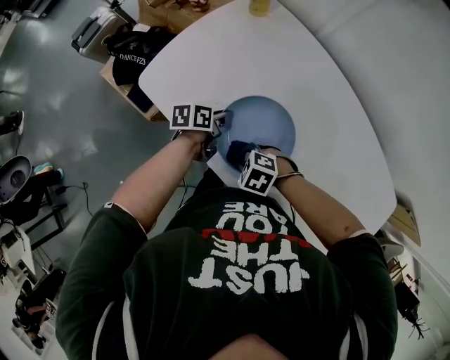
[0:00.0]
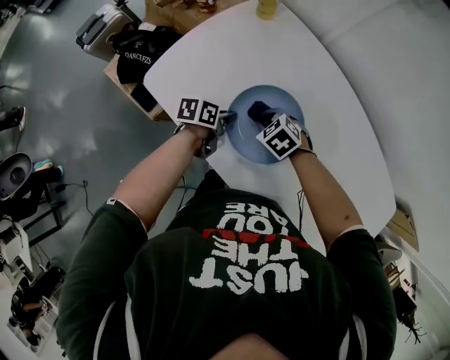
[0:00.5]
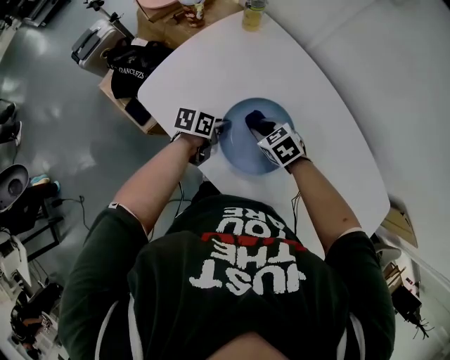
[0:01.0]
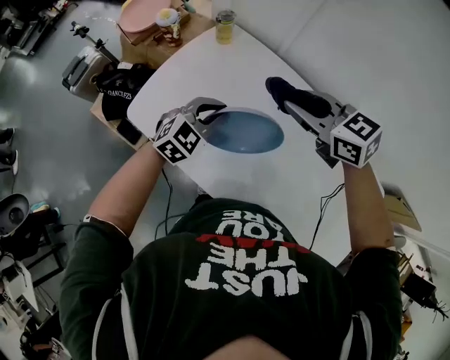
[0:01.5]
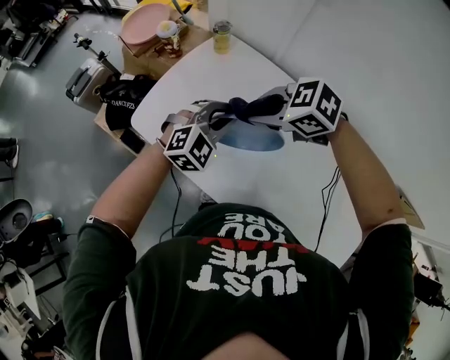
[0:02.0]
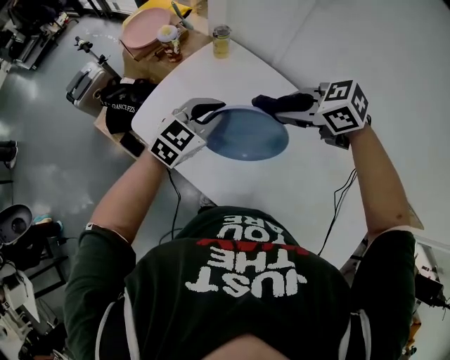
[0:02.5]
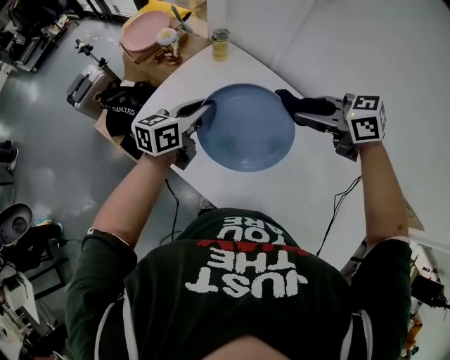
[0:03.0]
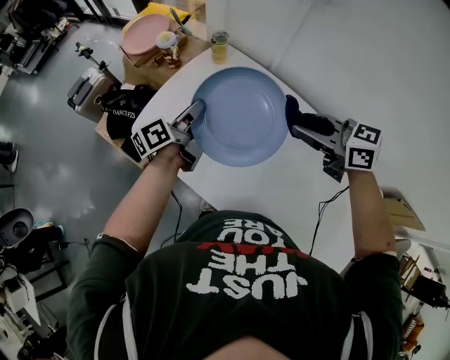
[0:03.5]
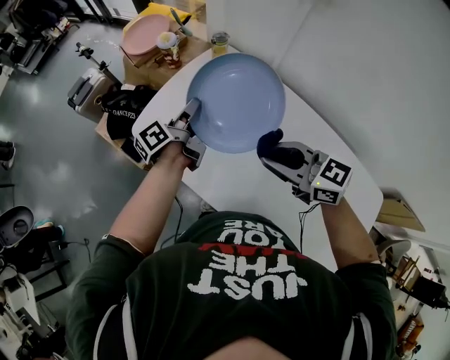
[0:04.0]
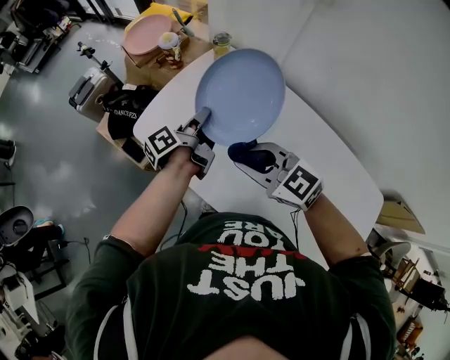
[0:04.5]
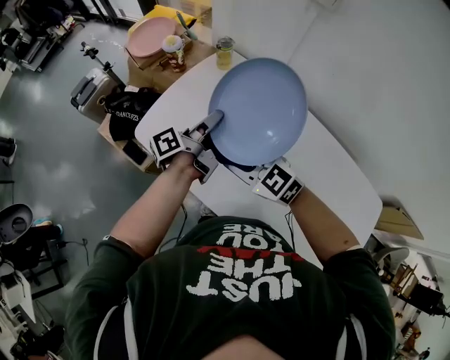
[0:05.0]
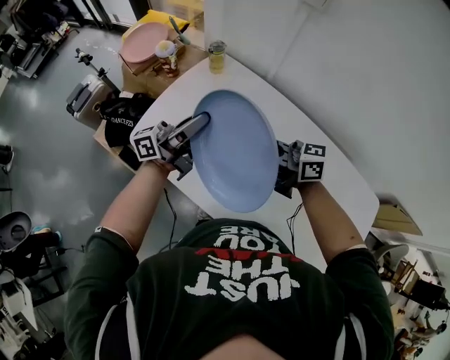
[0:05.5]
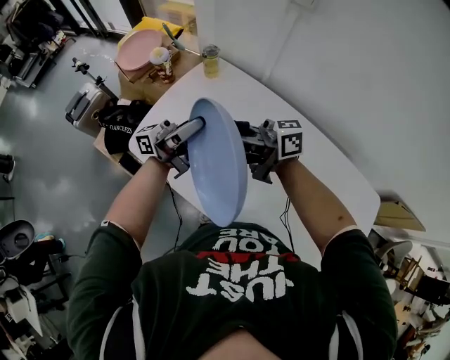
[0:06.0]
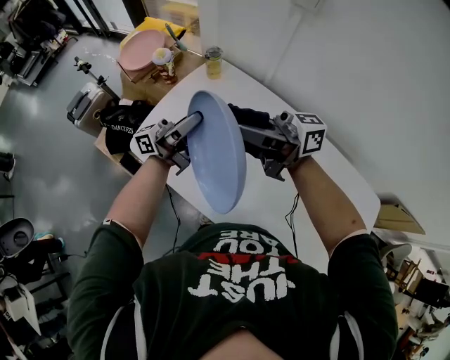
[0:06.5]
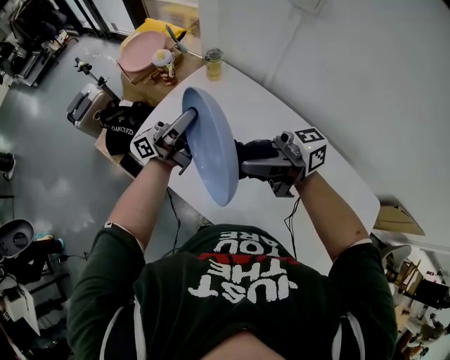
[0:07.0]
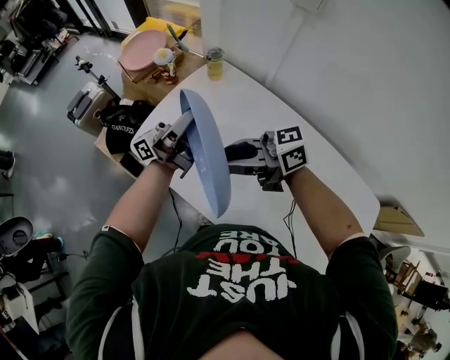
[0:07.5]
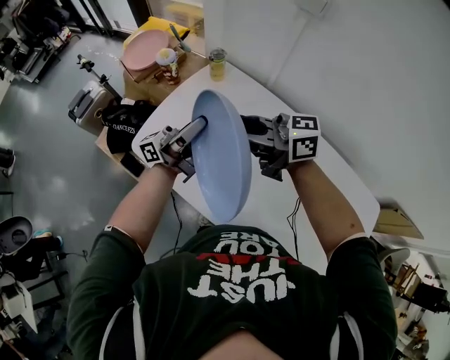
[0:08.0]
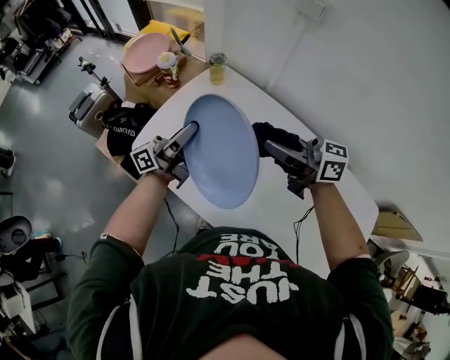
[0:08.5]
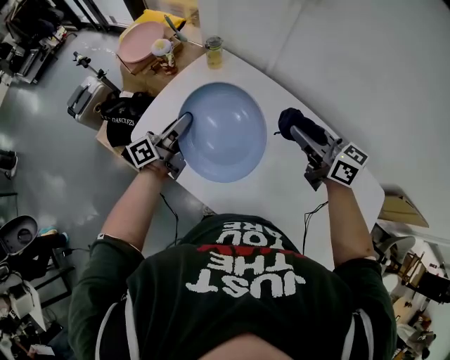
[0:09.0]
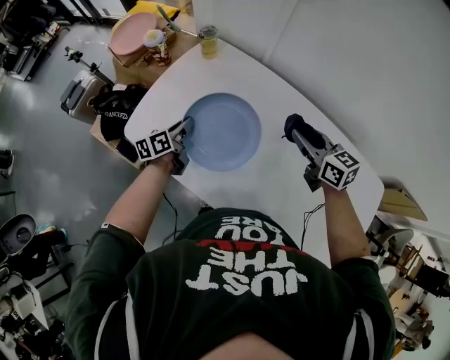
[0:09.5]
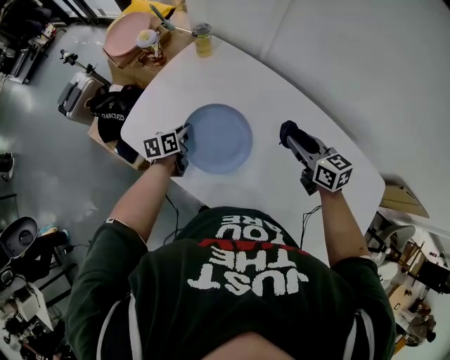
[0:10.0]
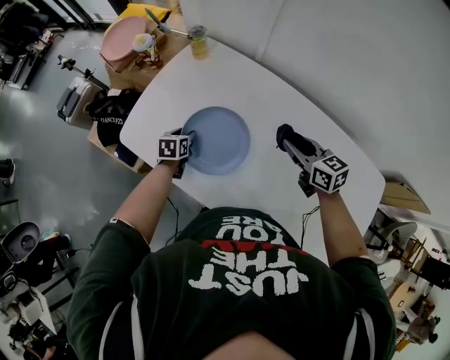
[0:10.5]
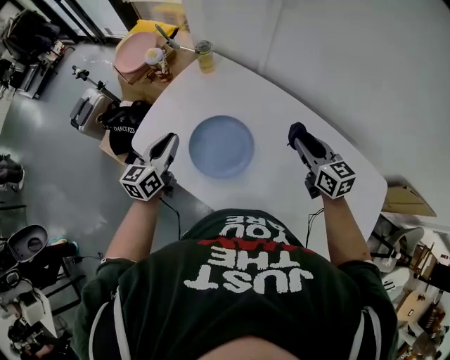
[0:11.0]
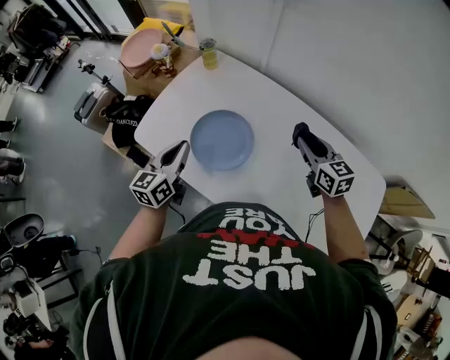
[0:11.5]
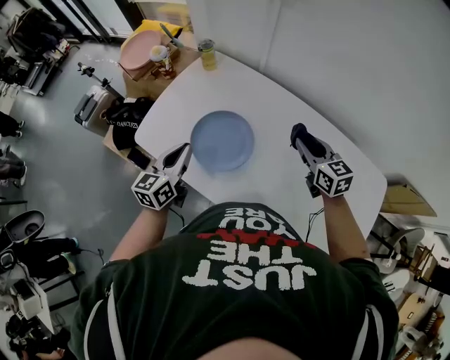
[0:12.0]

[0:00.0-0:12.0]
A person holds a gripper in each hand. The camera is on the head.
0:00.0 to 0:02.0: Both grippers move upward, approximately 25 cm. The right gripper turns by some 20 degrees. The left gripper rotates around the line of its fingers by some 100 degrees, clockwise from behind.
0:02.0 to 0:04.0: The left gripper changes place by some 15 cm, and rolls counterclockwise, seen from behind, by some 110 degrees; the right gripper moves about 10 cm, and tips its fingers upward by about 30 degrees.
0:04.0 to 0:06.0: The right gripper reaches about 10 cm downward, then returns, and tips its fingers upward by roughly 30 degrees; the left gripper moves upward, approximately 10 cm, and points its fingers approximately 40 degrees further upward.
0:06.0 to 0:08.0: The right gripper swings up and down, approximately 10 cm each way, with 2 reversals.
0:08.0 to 0:10.0: The right gripper shifts by roughly 30 cm, and tips its fingers downward by about 30 degrees. The left gripper shifts roughly 30 cm downward, and points its fingers some 80 degrees further downward.
0:10.0 to 0:12.0: The left gripper goes some 25 cm upward and backward, turns by some 30 degrees, and opens, then closes once more. Meanwhile the right gripper moves approximately 5 cm.

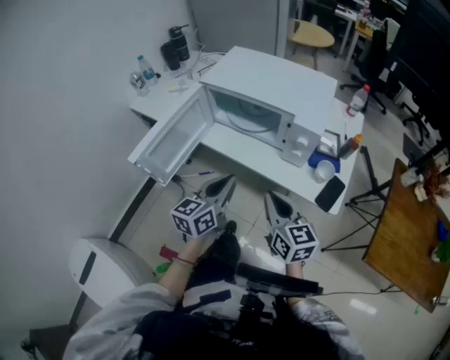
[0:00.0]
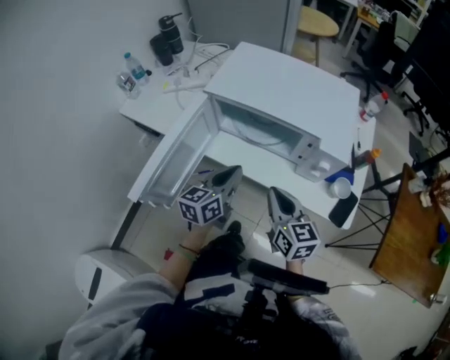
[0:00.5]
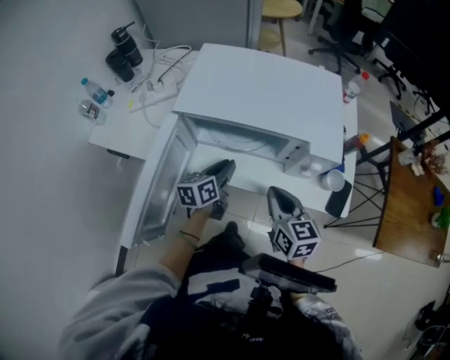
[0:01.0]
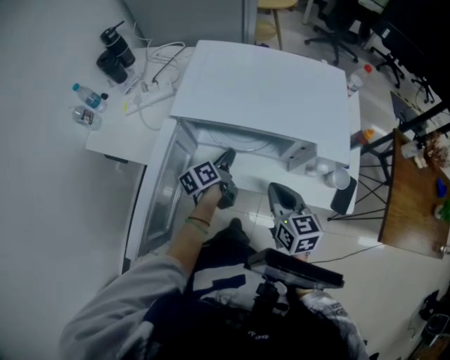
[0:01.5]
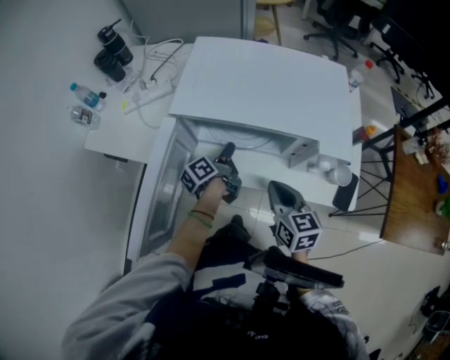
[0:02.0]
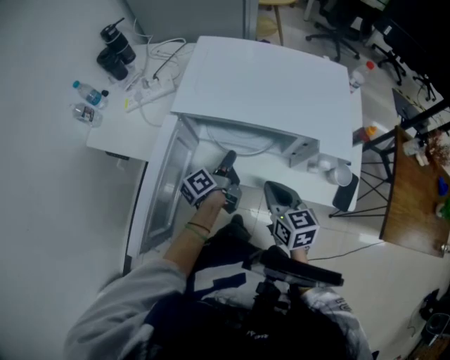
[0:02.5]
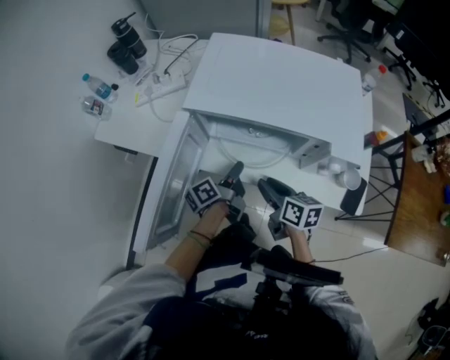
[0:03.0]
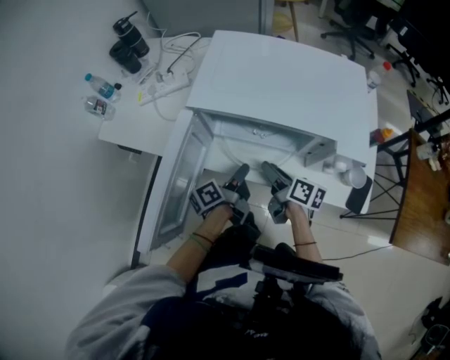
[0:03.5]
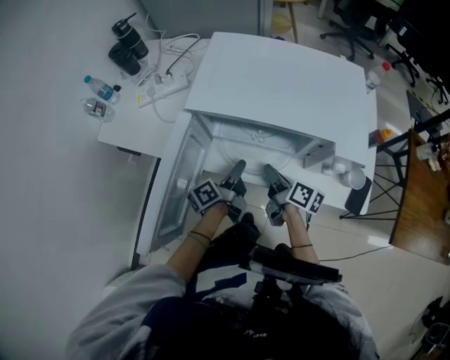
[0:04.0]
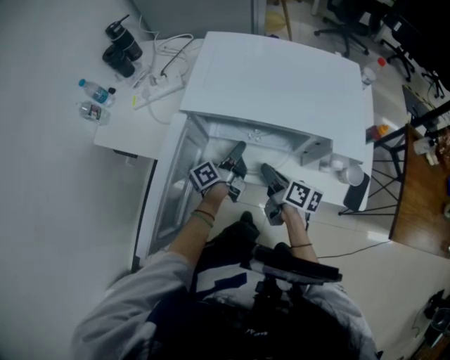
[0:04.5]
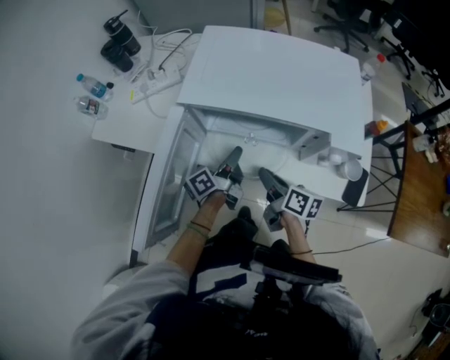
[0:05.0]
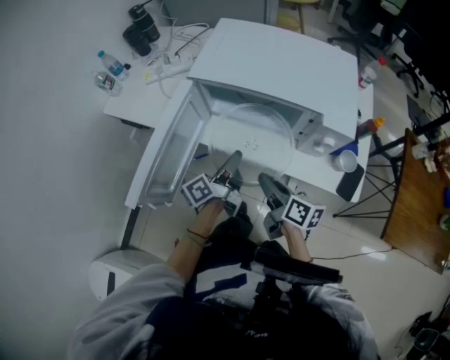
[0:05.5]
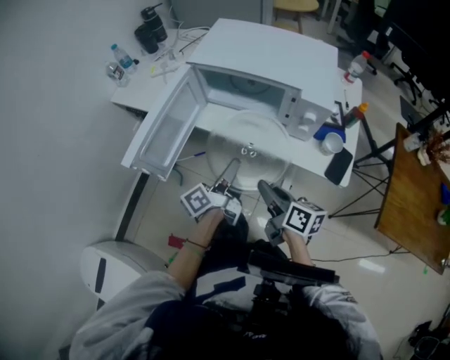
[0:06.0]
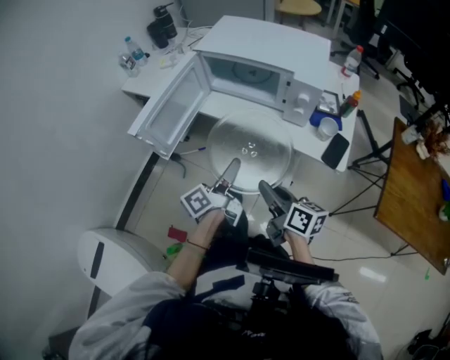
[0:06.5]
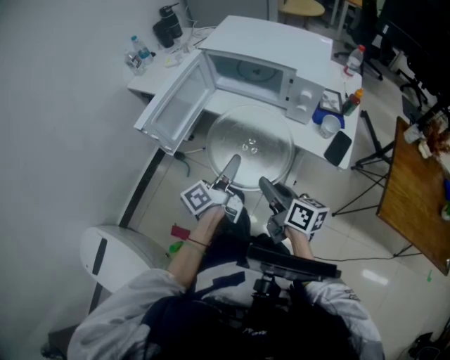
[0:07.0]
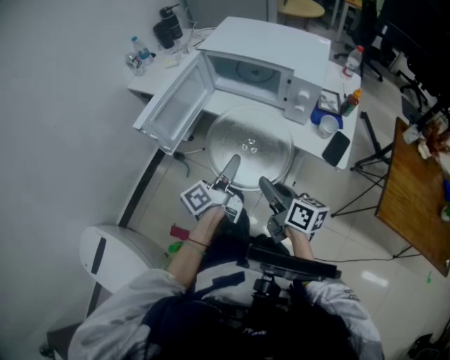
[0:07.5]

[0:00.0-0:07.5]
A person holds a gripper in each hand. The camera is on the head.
0:00.0 to 0:02.0: The right gripper heads forward, covering approximately 15 cm, and changes its angle by some 20 degrees; the left gripper heads forward and downward, covering about 35 cm, and twists approximately 60 degrees counterclockwise, seen from behind.
0:02.0 to 0:04.0: The right gripper heads downward and forward, covering roughly 10 cm, rotates around the line of its fingers by some 50 degrees, clockwise from behind, and opens, then closes again, while the left gripper is displaced backward by roughly 5 cm.
0:04.0 to 0:05.5: The right gripper shifts roughly 10 cm backward. The left gripper moves backward and upward, roughly 10 cm.
0:05.5 to 0:07.5: Both grippers travel together backward, approximately 20 cm.

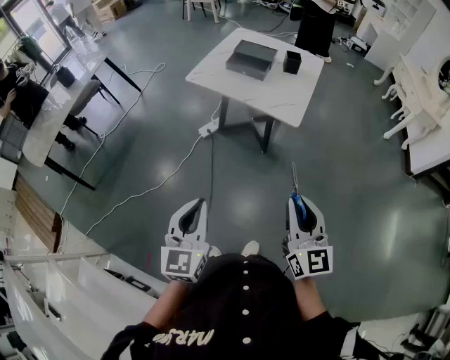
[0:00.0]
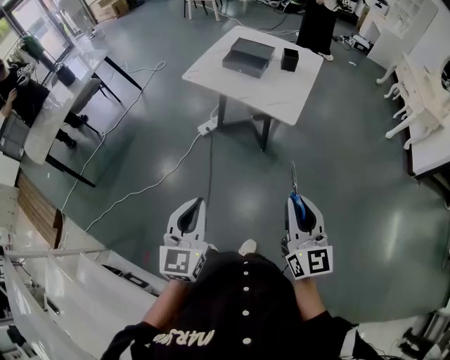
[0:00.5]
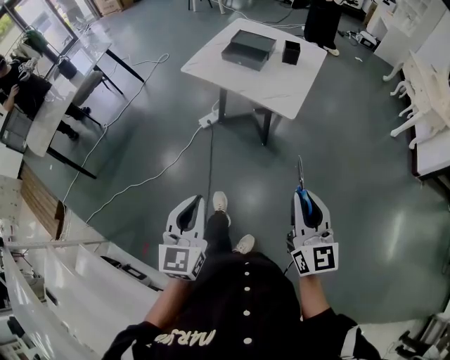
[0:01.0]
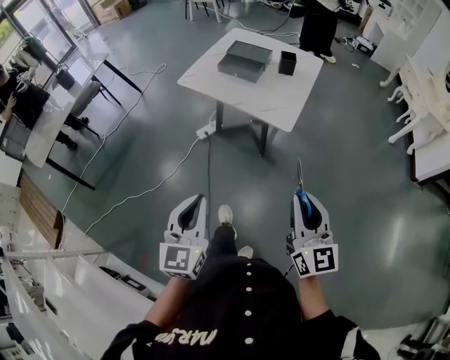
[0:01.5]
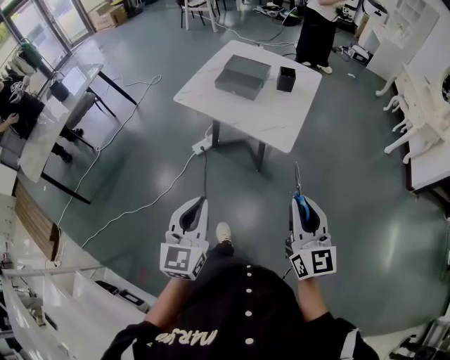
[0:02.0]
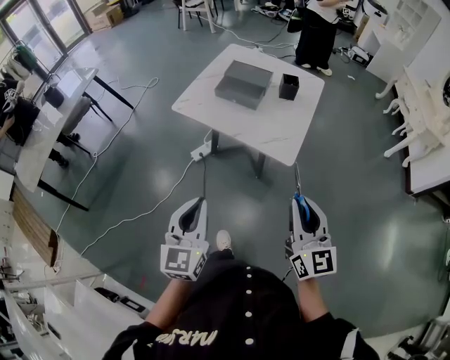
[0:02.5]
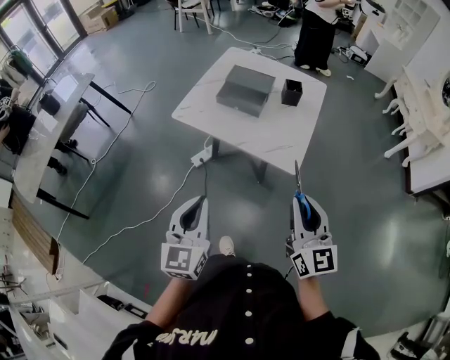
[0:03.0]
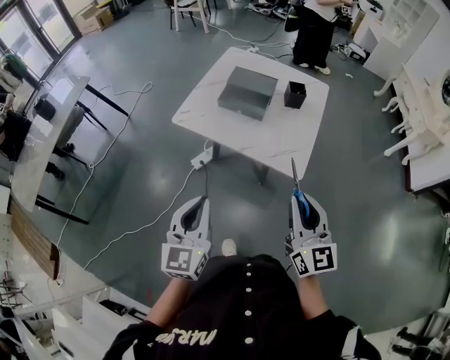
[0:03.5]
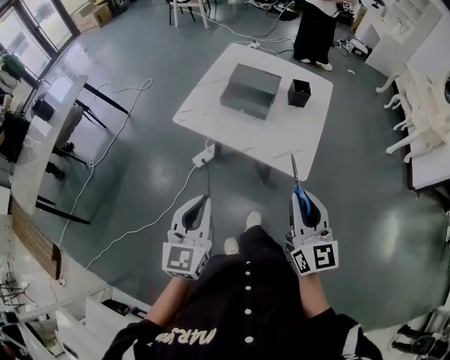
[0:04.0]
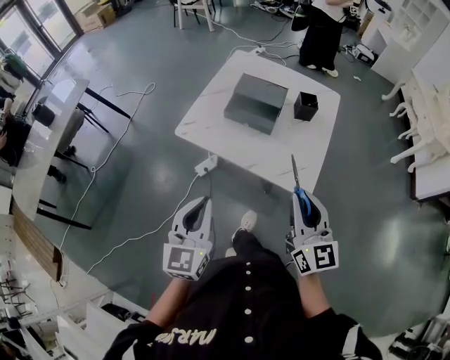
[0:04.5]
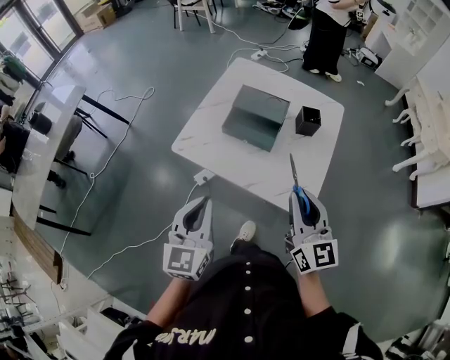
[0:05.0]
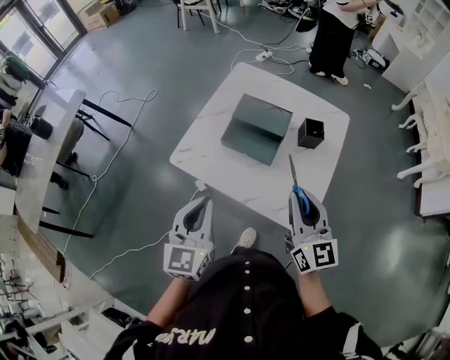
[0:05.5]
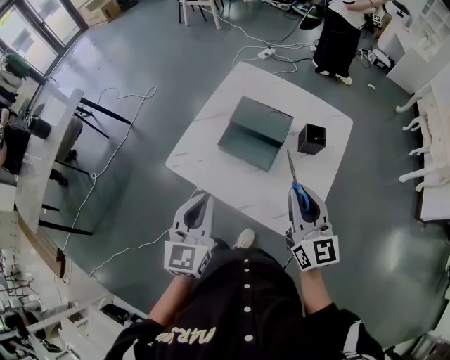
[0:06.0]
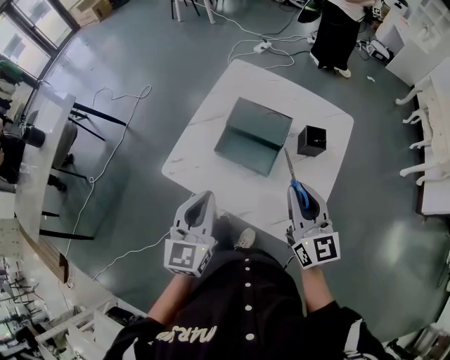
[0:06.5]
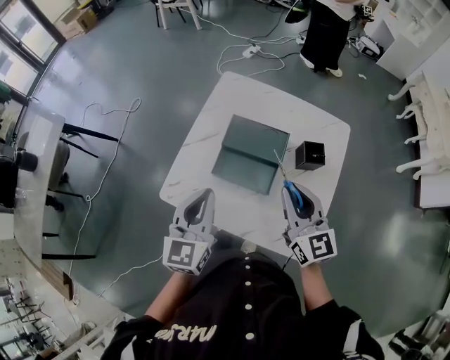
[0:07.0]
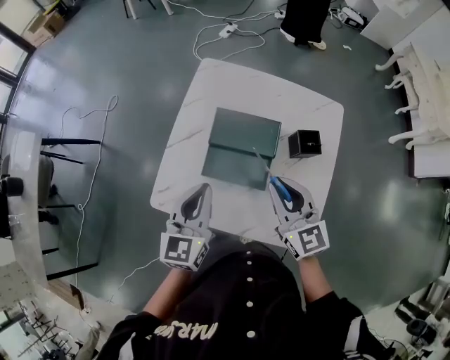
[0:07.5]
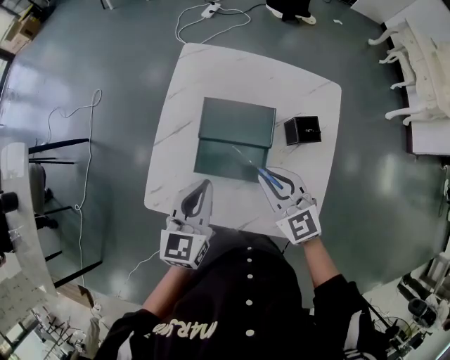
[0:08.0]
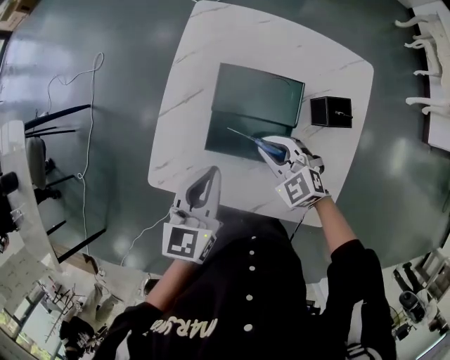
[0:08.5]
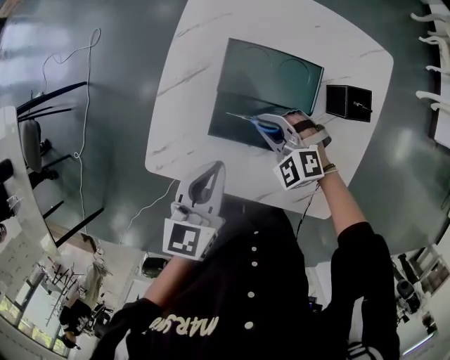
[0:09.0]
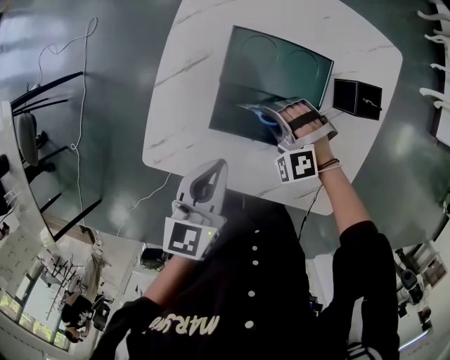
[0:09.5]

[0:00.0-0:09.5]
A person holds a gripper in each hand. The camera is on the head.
0:00.0 to 0:02.0: Both grippers travel together forward and to the right, roughly 15 cm.
0:02.0 to 0:04.0: The grippers both shift forward and to the left by some 20 cm.
0:04.0 to 0:05.5: The grippers both shift forward by roughly 25 cm.
0:05.5 to 0:07.5: Both grippers move forward, roughly 25 cm.
0:07.5 to 0:09.5: The left gripper shifts some 15 cm downward. The right gripper shifts roughly 30 cm downward, and twists about 70 degrees counterclockwise, seen from behind.
